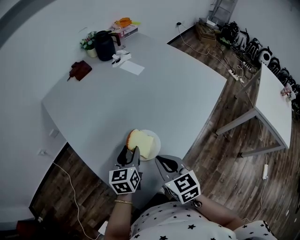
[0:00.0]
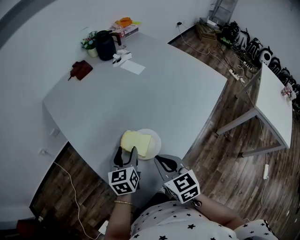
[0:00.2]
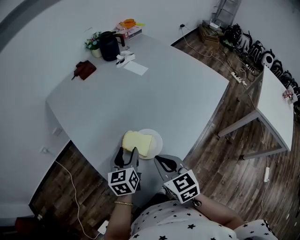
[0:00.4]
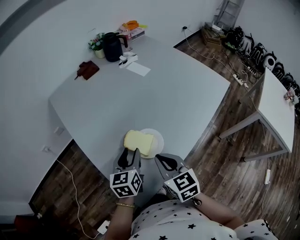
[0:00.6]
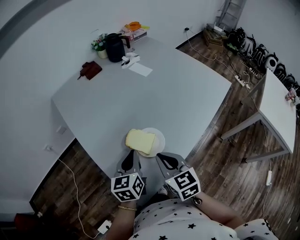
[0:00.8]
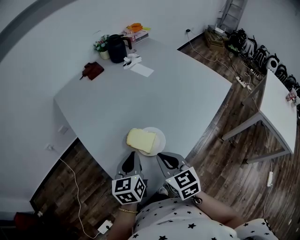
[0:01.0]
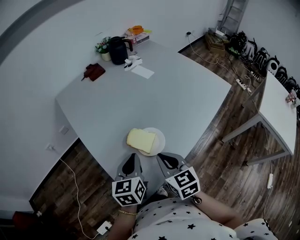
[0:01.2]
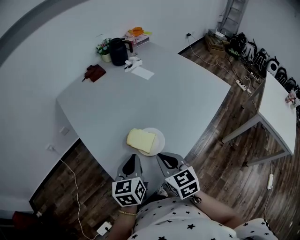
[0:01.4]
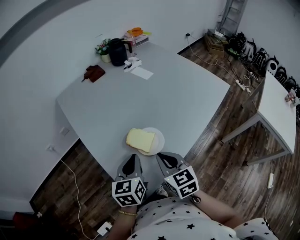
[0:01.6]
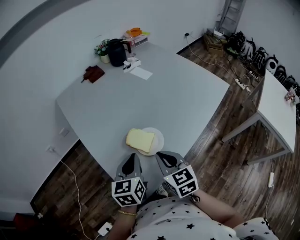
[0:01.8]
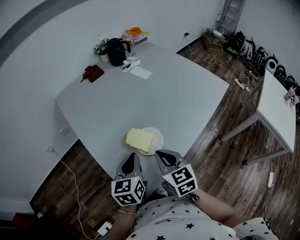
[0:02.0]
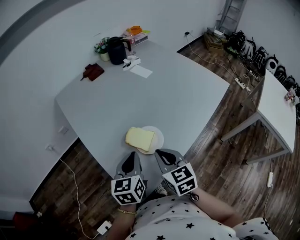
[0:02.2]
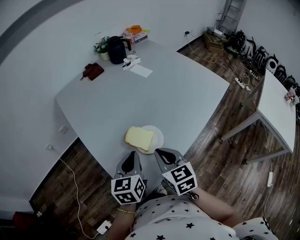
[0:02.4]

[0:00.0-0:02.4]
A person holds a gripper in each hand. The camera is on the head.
0:00.0 to 0:01.2: The left gripper is displaced backward and upward by approximately 10 cm, and closes its fingers.
0:01.2 to 0:02.4: The two grippers keep their place.

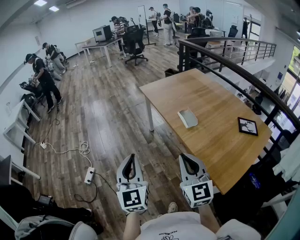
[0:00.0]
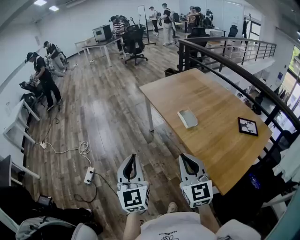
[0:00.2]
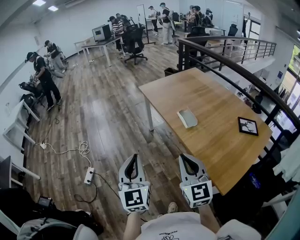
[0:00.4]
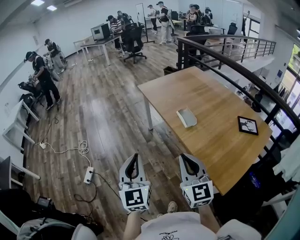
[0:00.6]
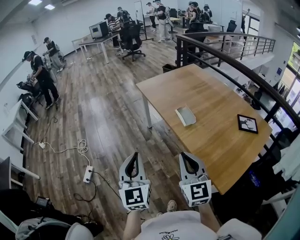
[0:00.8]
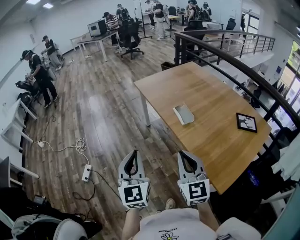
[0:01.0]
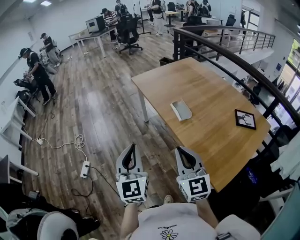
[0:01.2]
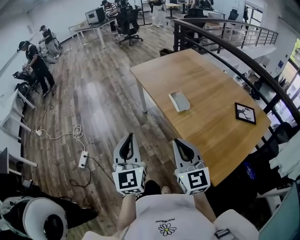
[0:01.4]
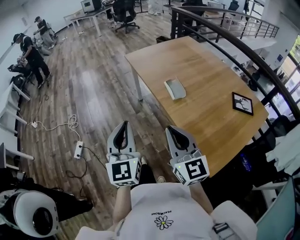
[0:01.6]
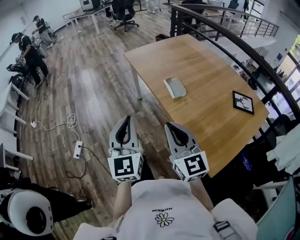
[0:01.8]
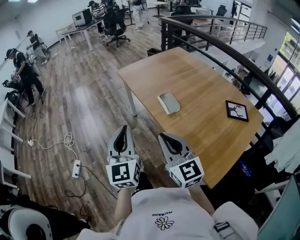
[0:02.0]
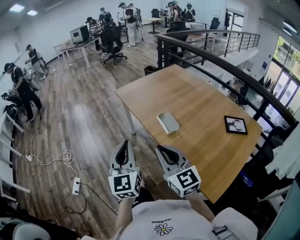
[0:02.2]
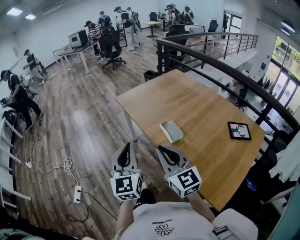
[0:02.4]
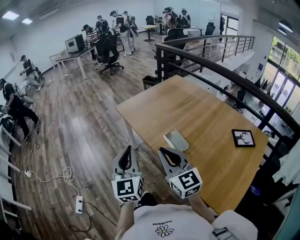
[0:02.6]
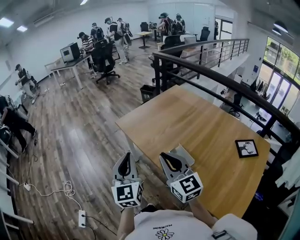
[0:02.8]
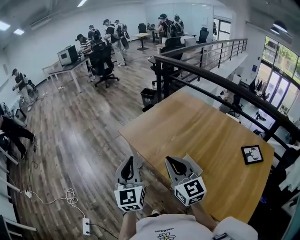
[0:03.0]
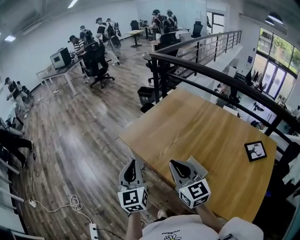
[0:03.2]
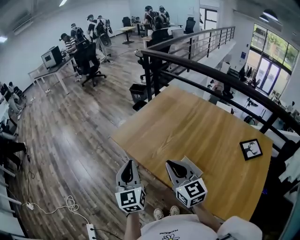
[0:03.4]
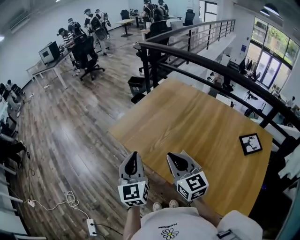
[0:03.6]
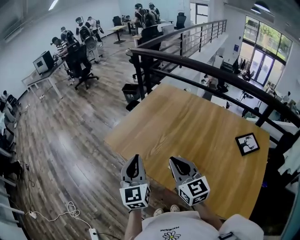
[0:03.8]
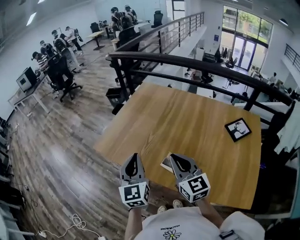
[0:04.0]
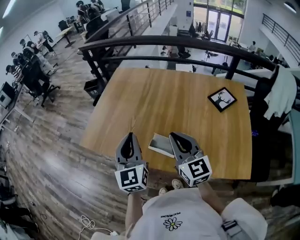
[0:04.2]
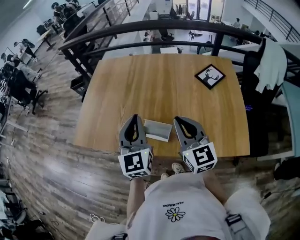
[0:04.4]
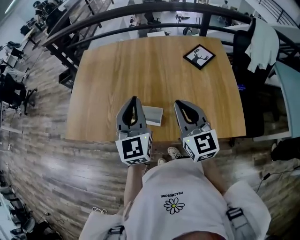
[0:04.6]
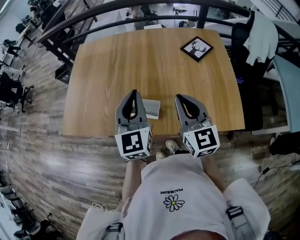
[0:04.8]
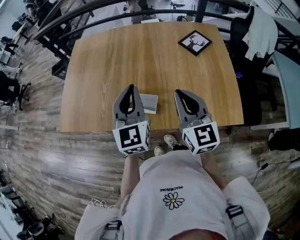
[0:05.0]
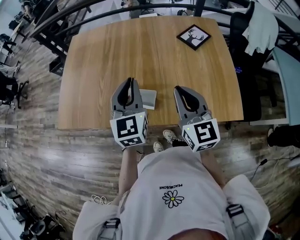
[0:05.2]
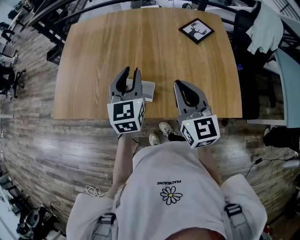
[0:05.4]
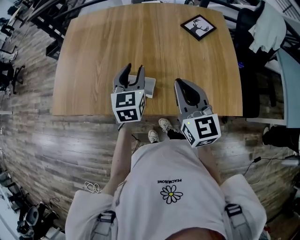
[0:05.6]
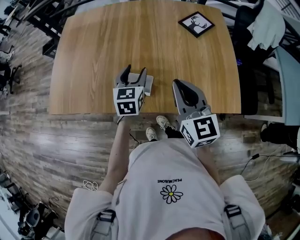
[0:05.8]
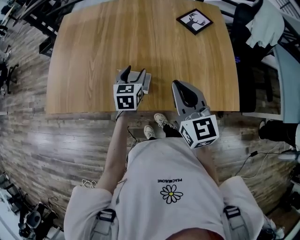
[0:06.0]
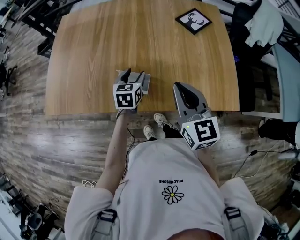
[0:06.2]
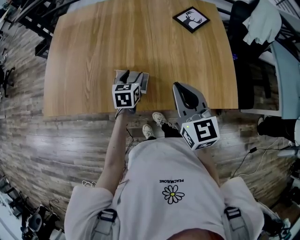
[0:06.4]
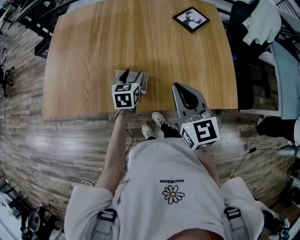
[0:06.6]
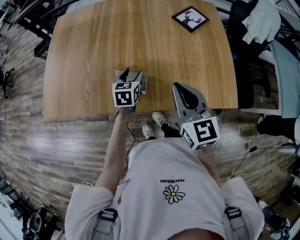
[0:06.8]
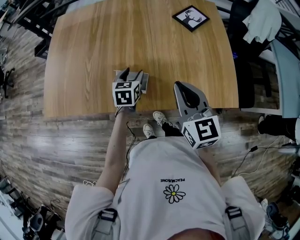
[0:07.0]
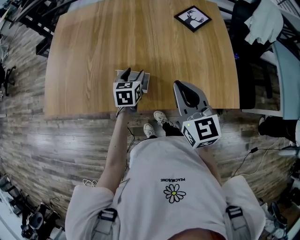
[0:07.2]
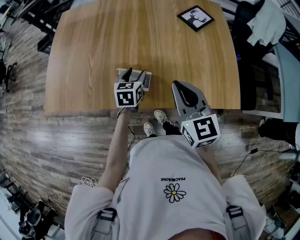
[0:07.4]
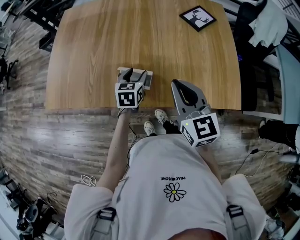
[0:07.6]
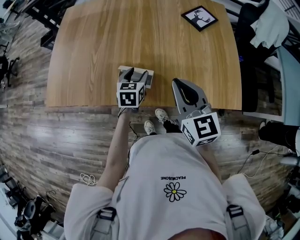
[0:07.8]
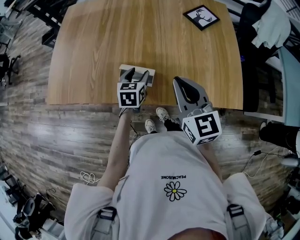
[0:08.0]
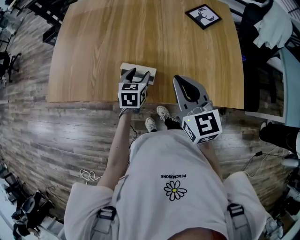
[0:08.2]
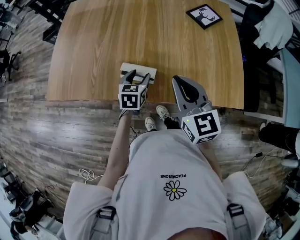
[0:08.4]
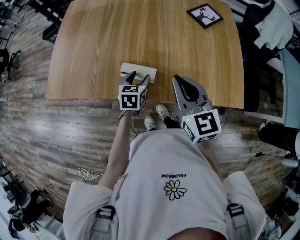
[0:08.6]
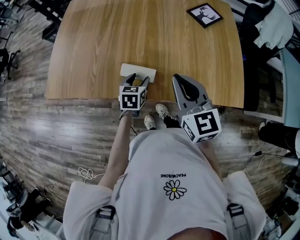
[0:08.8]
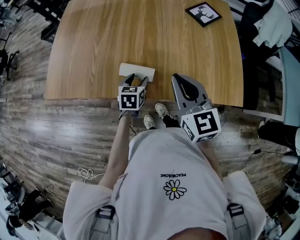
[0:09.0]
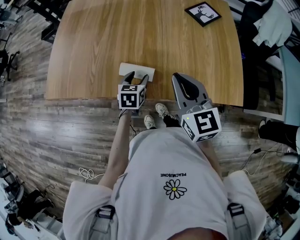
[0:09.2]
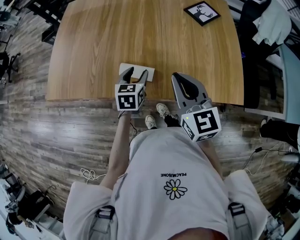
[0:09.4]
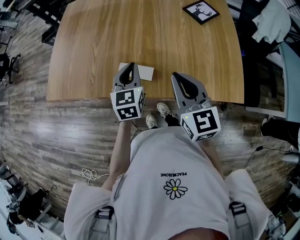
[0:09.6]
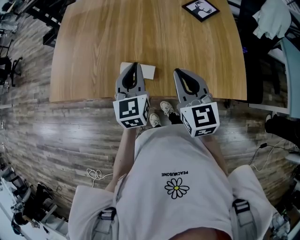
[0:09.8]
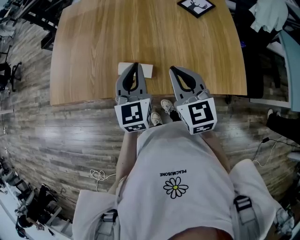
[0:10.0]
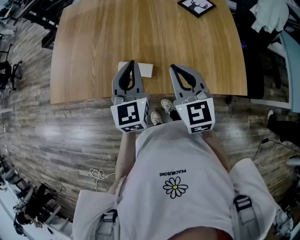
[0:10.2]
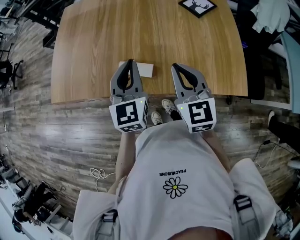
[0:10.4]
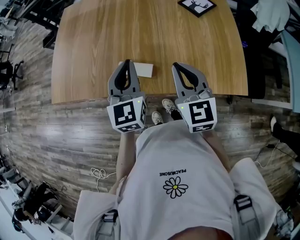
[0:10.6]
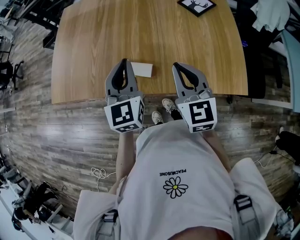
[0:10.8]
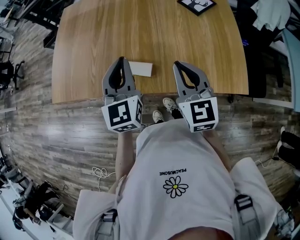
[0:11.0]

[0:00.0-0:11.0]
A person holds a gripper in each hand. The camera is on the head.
0:00.0 to 0:01.6: The left gripper heads to the right, covering some 10 cm.
0:01.6 to 0:03.2: The two grippers go some 40 cm forward.
0:03.2 to 0:04.8: The right gripper ends up about 25 cm from where it was, and rotates roughly 50 degrees. The left gripper shifts by roughly 30 cm, and turns by about 50 degrees.
0:04.8 to 0:06.2: The right gripper changes place by roughly 5 cm, while the left gripper goes some 25 cm downward, tips its fingers downward by roughly 30 degrees, and opens its fingers.
0:06.2 to 0:07.8: There are only small adjustments of the grippers.
0:09.4 to 0:11.0: The left gripper is displaced upward by some 20 cm, swivels some 30 degrees, and closes up.

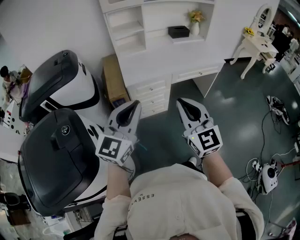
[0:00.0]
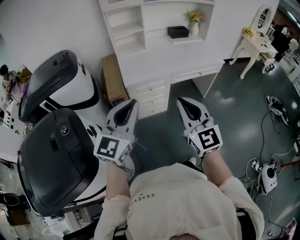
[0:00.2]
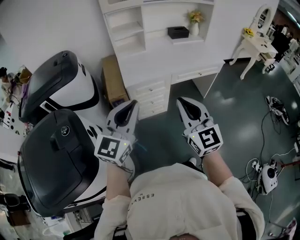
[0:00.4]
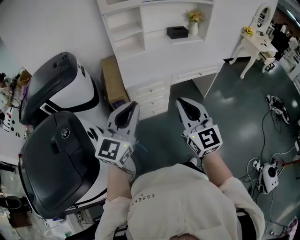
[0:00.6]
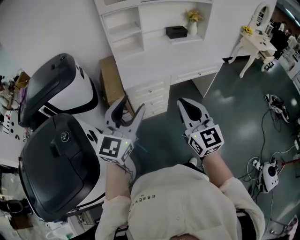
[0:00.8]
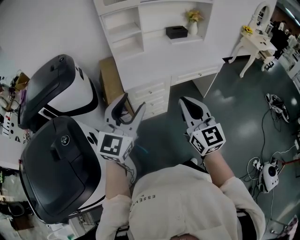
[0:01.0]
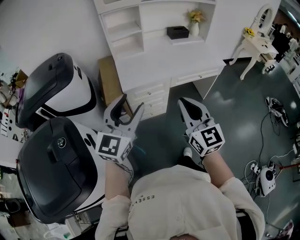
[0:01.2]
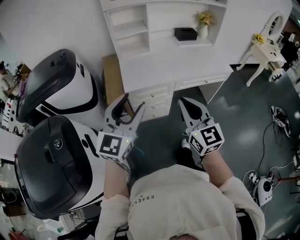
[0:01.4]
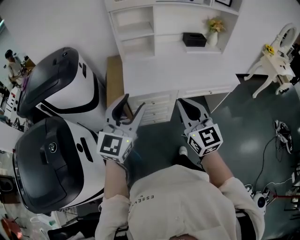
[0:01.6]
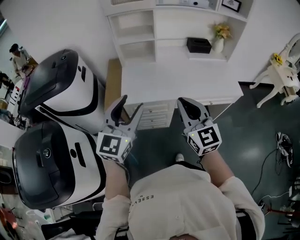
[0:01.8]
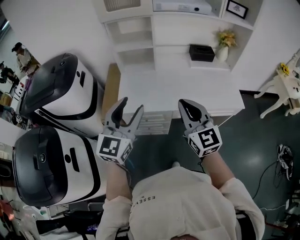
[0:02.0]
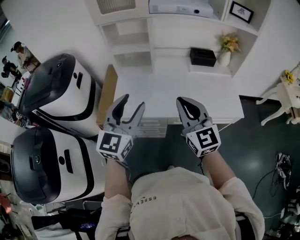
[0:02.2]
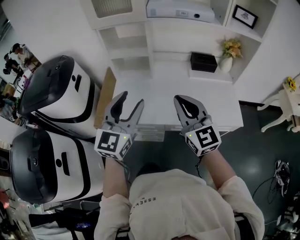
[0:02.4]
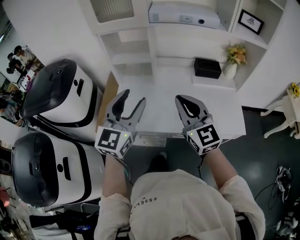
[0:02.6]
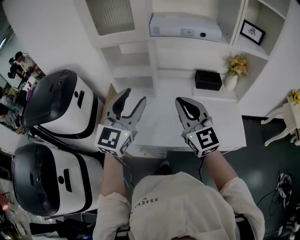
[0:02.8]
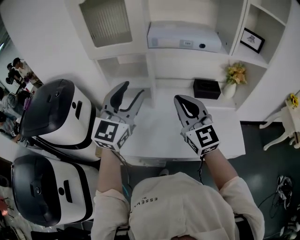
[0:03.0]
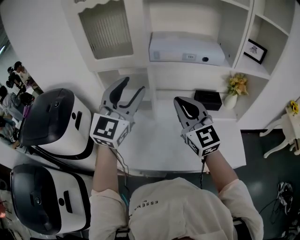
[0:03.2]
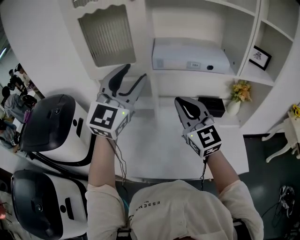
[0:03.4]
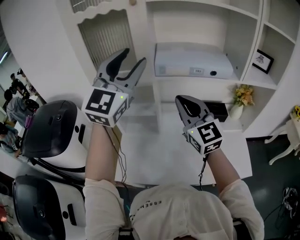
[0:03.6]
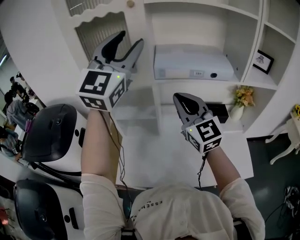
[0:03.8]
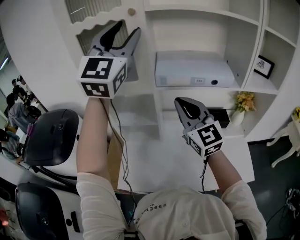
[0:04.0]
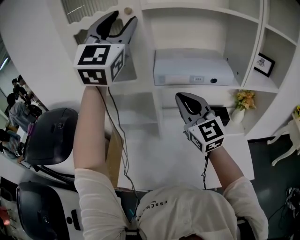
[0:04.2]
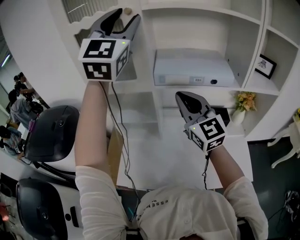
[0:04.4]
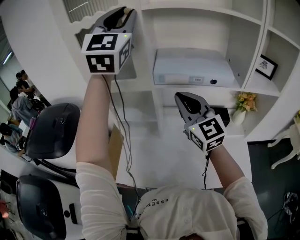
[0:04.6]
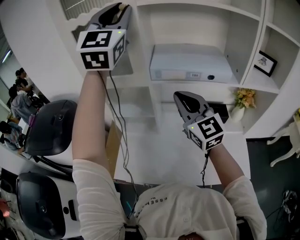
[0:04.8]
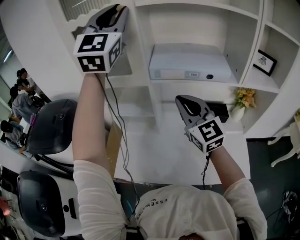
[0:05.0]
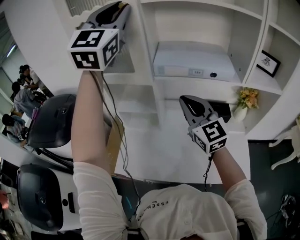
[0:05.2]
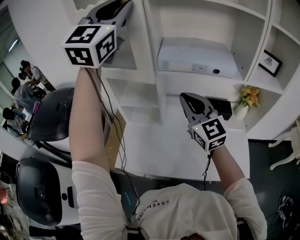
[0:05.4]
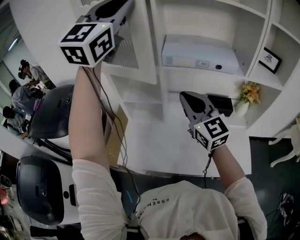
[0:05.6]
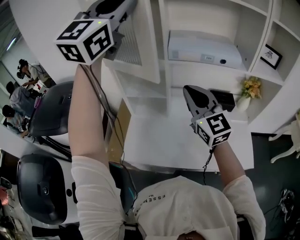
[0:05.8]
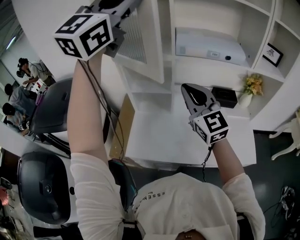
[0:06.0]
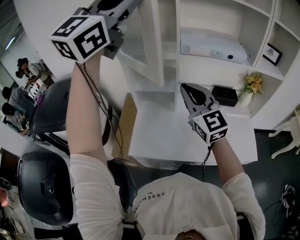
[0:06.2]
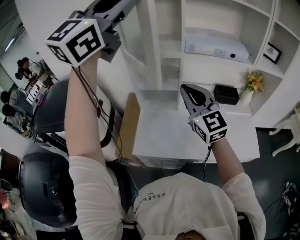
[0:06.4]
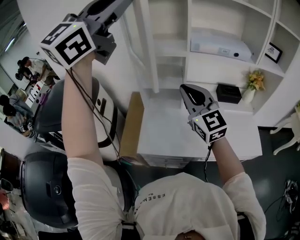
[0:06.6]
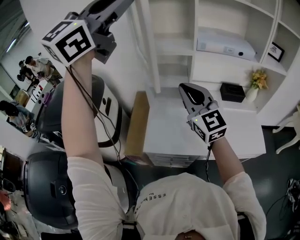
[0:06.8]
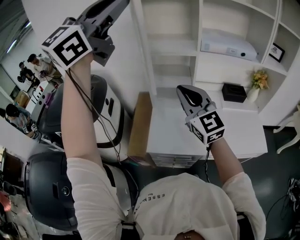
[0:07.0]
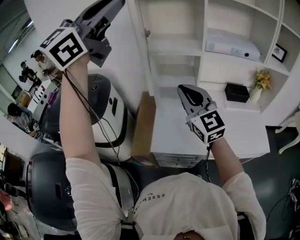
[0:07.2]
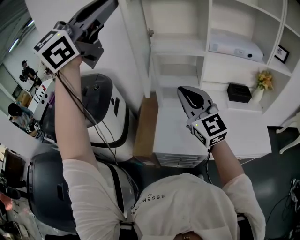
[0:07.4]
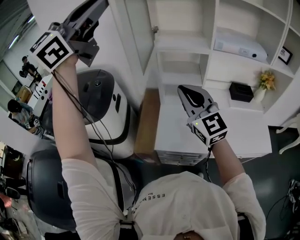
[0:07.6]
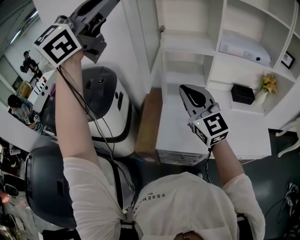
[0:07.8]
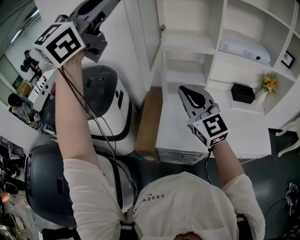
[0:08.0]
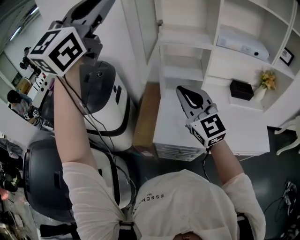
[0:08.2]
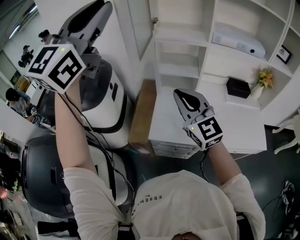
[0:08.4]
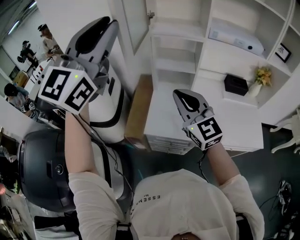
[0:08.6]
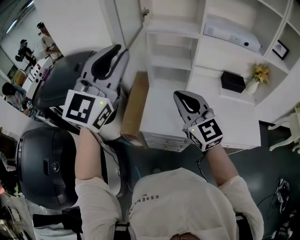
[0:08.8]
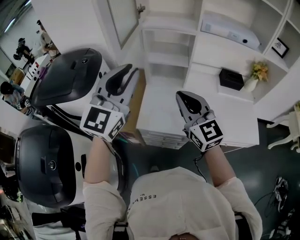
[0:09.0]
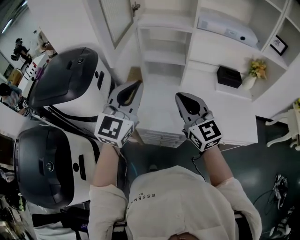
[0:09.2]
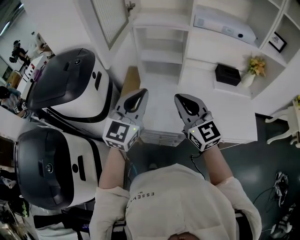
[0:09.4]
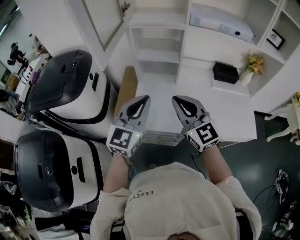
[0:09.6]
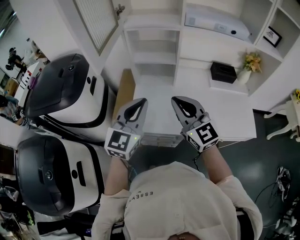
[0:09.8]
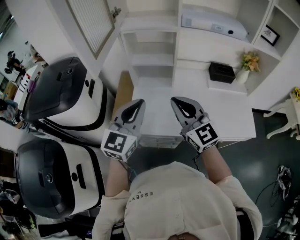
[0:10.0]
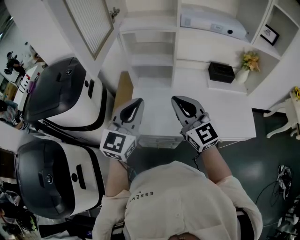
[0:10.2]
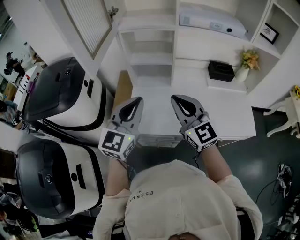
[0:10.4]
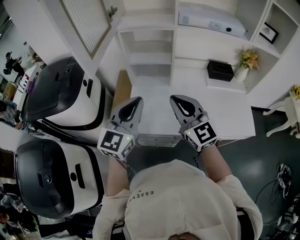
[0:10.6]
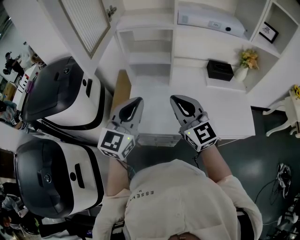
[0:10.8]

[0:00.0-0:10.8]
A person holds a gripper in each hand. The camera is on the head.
0:00.0 to 0:01.6: The grippers both shift forward by roughly 15 cm. The left gripper opens its fingers.
0:01.6 to 0:03.0: The pair of grippers is taken forward and to the right, some 40 cm.
0:03.0 to 0:04.6: The left gripper heads upward and forward, covering approximately 35 cm, turns by some 30 degrees, and closes. The right gripper is displaced forward and upward by some 15 cm.
0:04.6 to 0:06.2: The grippers both shift backward and to the left by about 15 cm. The left gripper rotates some 30 degrees.
0:06.2 to 0:07.8: Both grippers travel together to the left and backward, roughly 20 cm.
0:07.8 to 0:09.2: The left gripper travels downward by about 35 cm, and changes its angle by about 30 degrees. The right gripper is displaced to the right, downward and backward by approximately 15 cm.
0:09.2 to 0:10.8: The left gripper goes some 10 cm downward and to the right.
